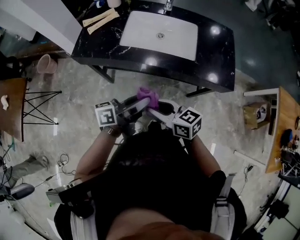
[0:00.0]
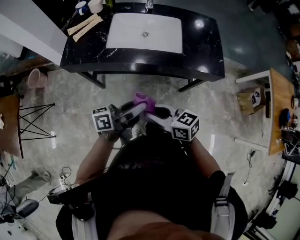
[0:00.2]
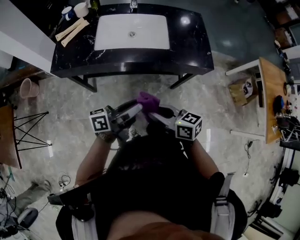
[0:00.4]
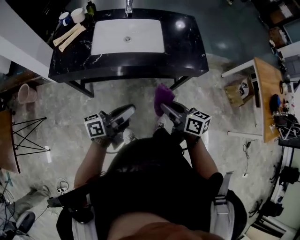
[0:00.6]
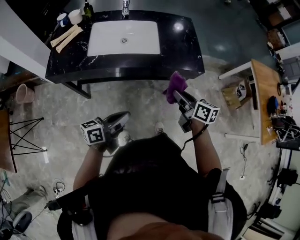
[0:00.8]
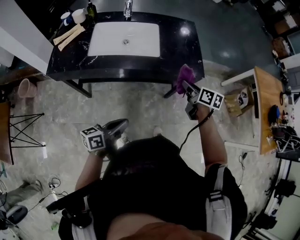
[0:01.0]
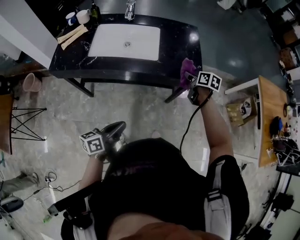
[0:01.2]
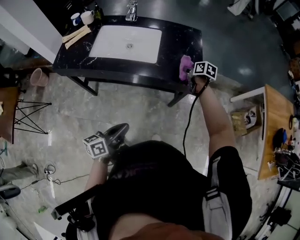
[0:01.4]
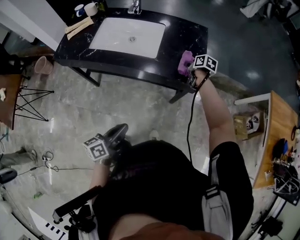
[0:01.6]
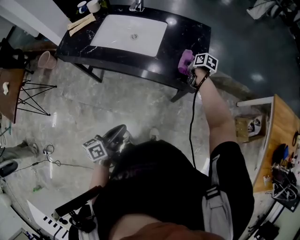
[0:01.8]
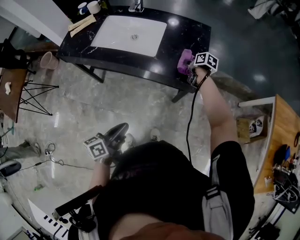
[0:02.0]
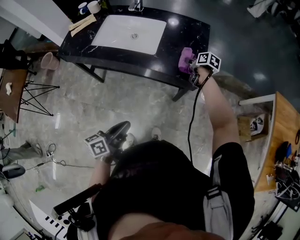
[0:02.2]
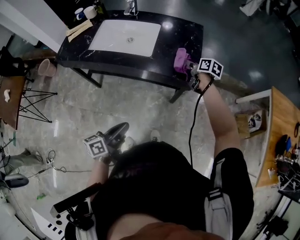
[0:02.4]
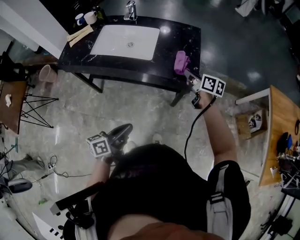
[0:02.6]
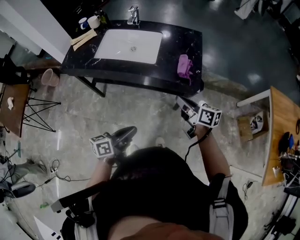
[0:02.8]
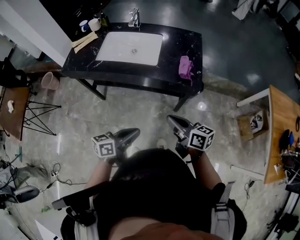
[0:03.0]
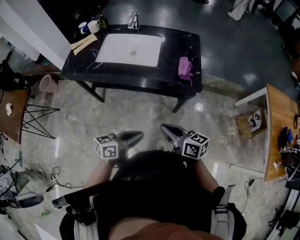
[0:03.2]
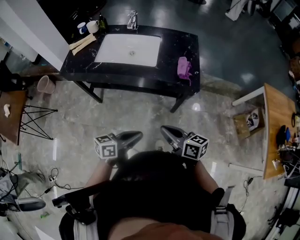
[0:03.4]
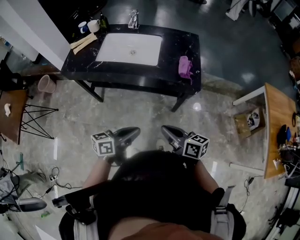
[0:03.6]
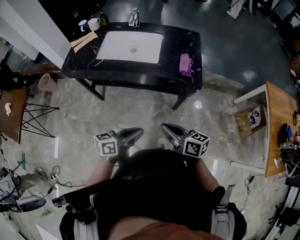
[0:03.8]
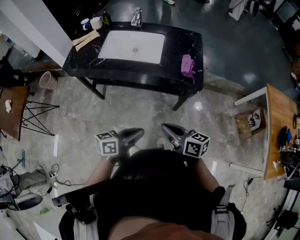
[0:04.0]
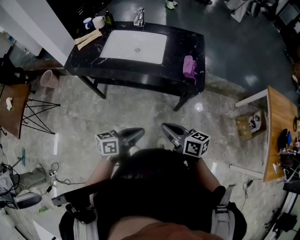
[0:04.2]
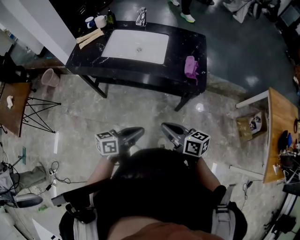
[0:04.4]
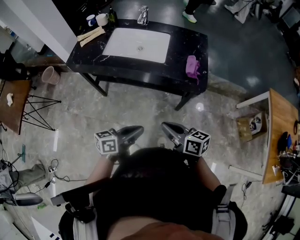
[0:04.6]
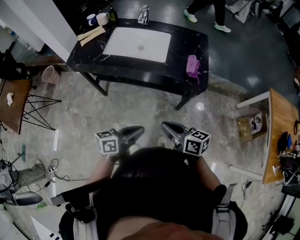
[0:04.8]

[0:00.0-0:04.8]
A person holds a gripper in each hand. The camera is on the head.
0:00.0 to 0:01.6: The left gripper heads to the right, backward and downward, covering some 20 cm, changes its angle by some 30 degrees, and closes its fingers. Meanwhile the right gripper moves to the right and forward, about 50 cm, and tilts its fingers some 30 degrees downward.
0:01.6 to 0:03.2: The right gripper moves backward, to the left and upward, roughly 40 cm, and points its fingers roughly 40 degrees further upward; the left gripper shifts by about 5 cm, and turns by roughly 30 degrees.
0:03.2 to 0:04.8: There are only small adjustments of the grippers.

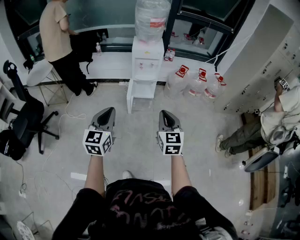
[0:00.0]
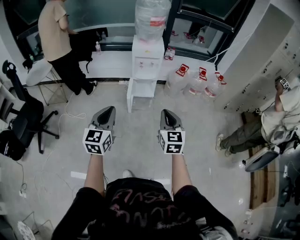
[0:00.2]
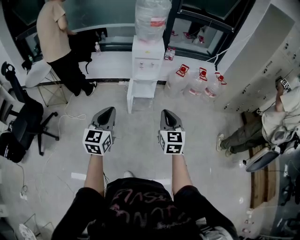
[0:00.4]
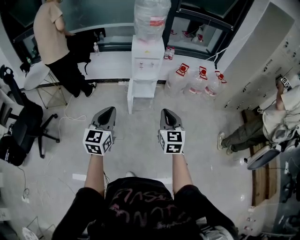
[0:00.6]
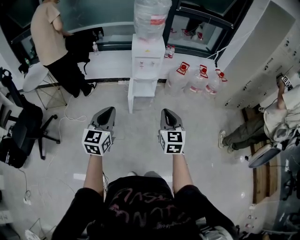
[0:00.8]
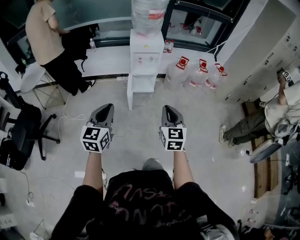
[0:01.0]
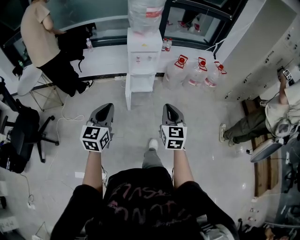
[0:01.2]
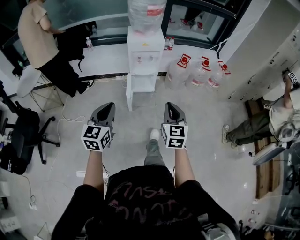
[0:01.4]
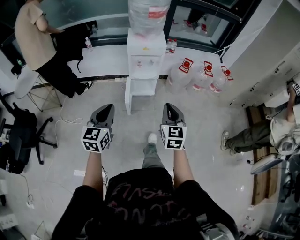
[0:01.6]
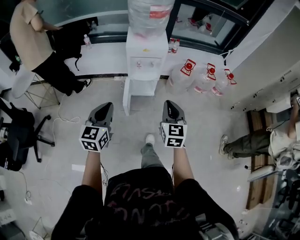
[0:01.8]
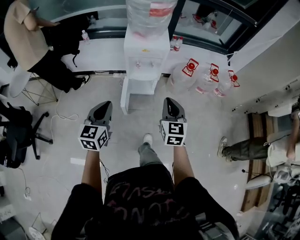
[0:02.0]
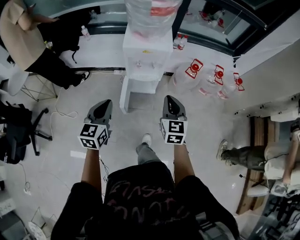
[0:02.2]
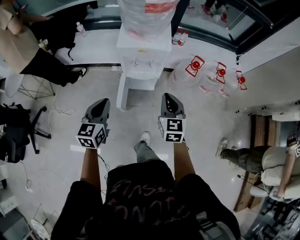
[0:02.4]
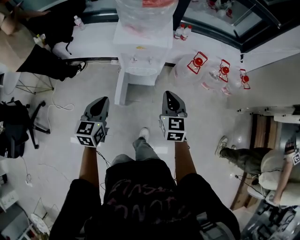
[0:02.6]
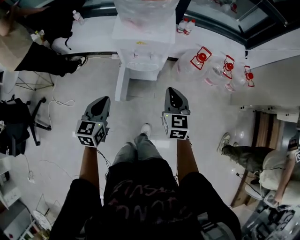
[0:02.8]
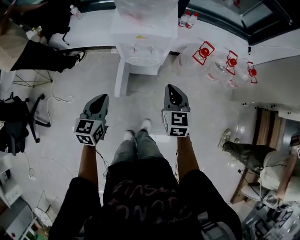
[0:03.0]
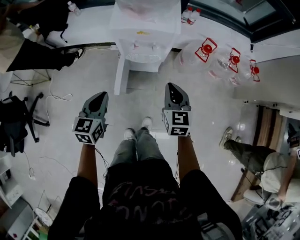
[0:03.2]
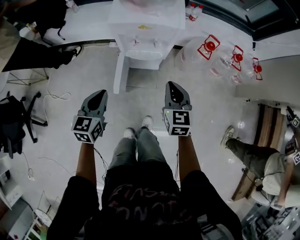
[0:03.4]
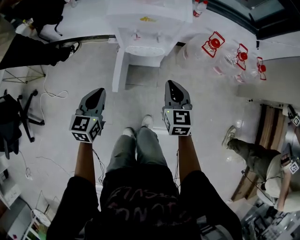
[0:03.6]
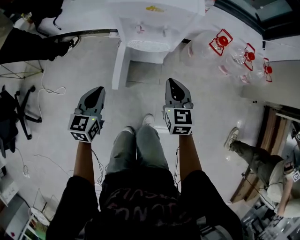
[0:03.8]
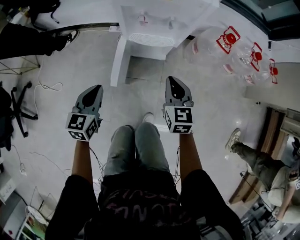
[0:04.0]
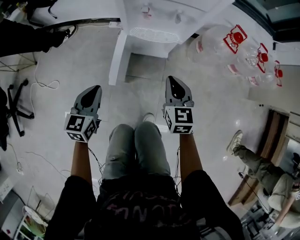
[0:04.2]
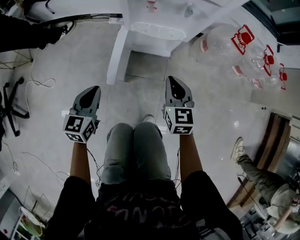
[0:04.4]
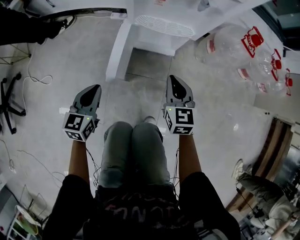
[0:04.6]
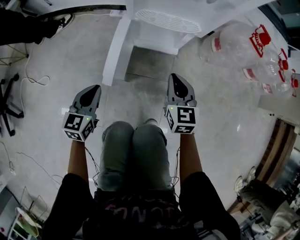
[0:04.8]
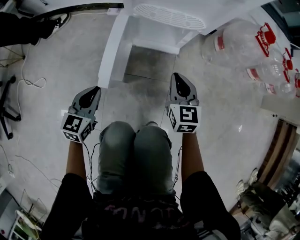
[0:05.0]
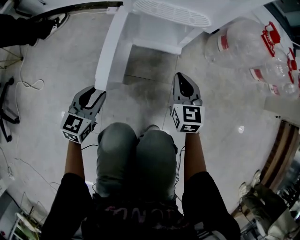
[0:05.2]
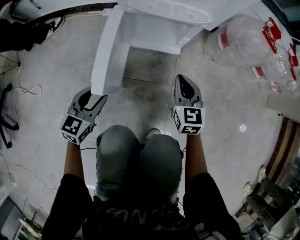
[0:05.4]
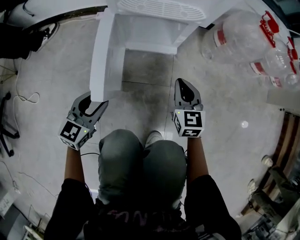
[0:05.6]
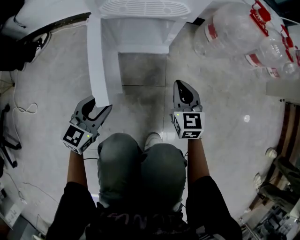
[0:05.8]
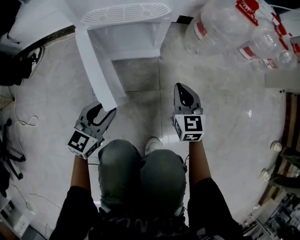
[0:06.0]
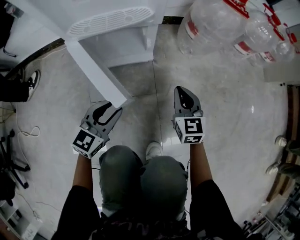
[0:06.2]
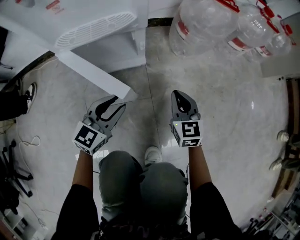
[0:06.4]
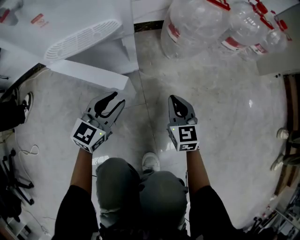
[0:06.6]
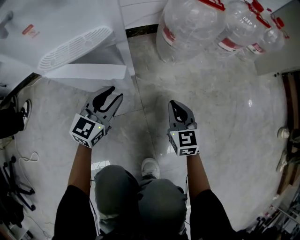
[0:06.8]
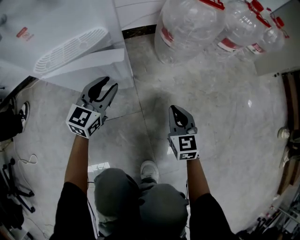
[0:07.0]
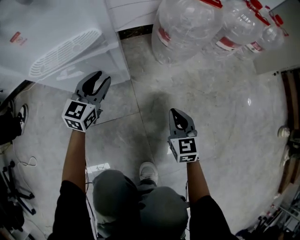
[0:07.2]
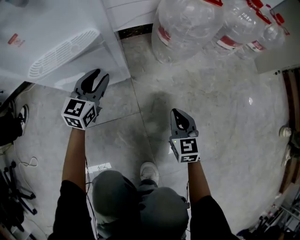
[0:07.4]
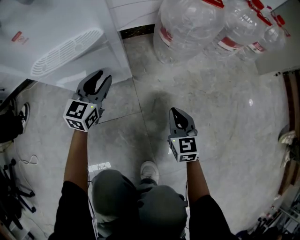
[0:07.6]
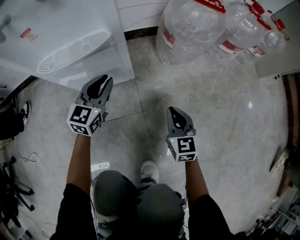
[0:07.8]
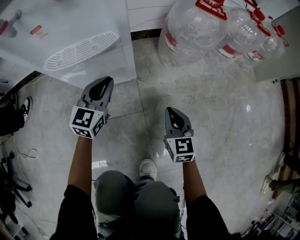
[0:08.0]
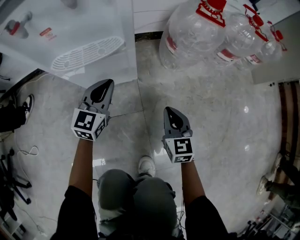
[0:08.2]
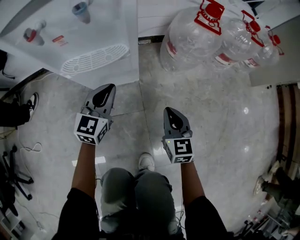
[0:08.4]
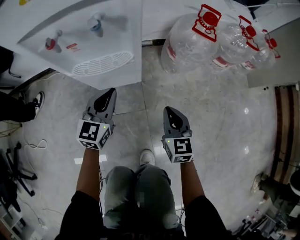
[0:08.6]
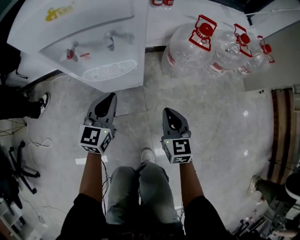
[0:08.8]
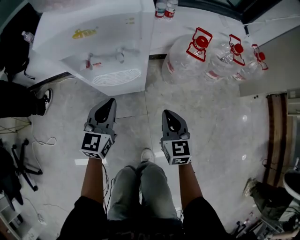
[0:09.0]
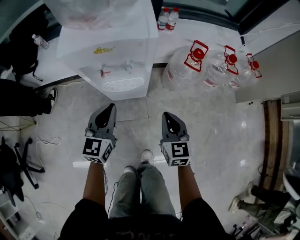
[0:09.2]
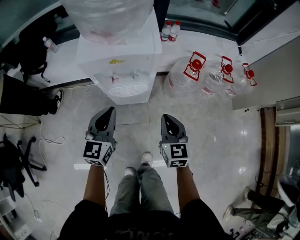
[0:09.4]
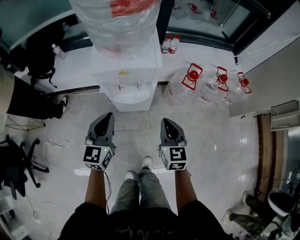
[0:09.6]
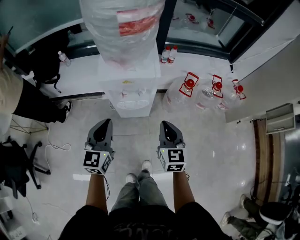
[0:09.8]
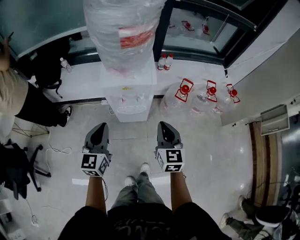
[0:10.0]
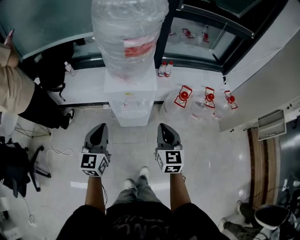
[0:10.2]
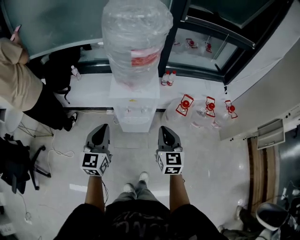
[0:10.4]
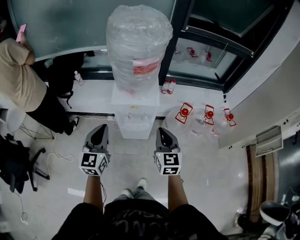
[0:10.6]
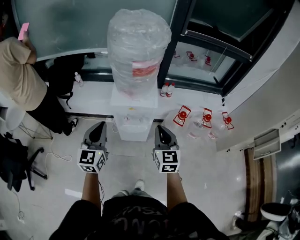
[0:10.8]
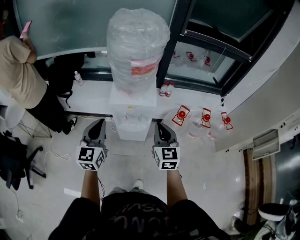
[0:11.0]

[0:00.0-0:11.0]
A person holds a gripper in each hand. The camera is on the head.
0:00.0 to 0:01.6: The two grippers go approximately 20 cm forward.
0:01.6 to 0:03.2: Both grippers move forward and downward, roughly 35 cm.
0:03.2 to 0:04.8: The grippers both shift downward by some 40 cm.
0:04.8 to 0:06.2: The right gripper moves to the right and downward, about 20 cm. Meanwhile the left gripper moves to the right, downward and forward, roughly 20 cm, changes its angle by some 30 degrees, and opens up.
0:06.2 to 0:07.8: The left gripper heads forward, covering roughly 20 cm. The right gripper shifts about 5 cm to the right.
0:07.8 to 0:09.4: The grippers both shift upward by roughly 50 cm.
0:09.4 to 0:11.0: The grippers both shift upward by approximately 30 cm.

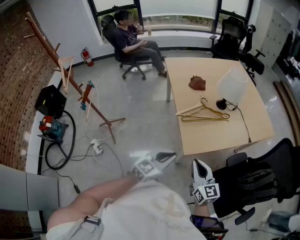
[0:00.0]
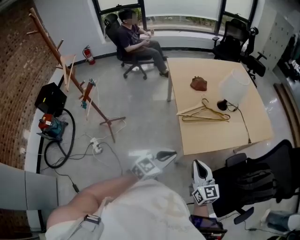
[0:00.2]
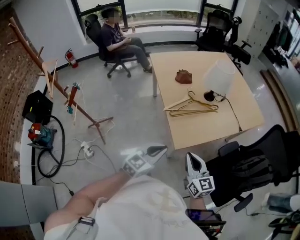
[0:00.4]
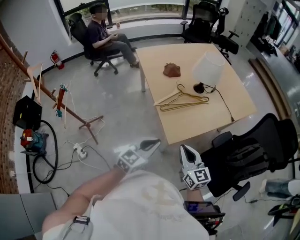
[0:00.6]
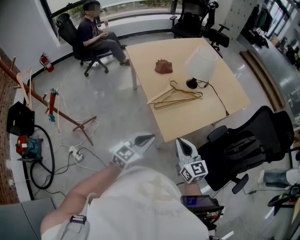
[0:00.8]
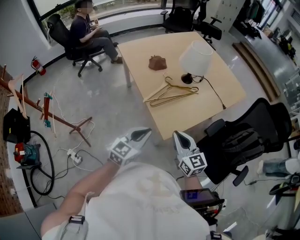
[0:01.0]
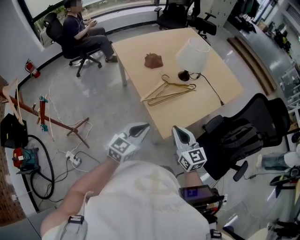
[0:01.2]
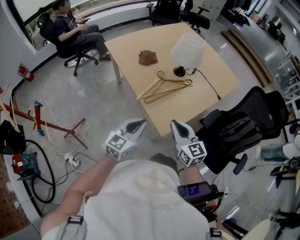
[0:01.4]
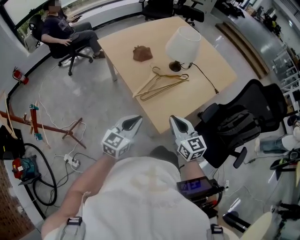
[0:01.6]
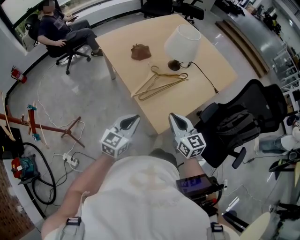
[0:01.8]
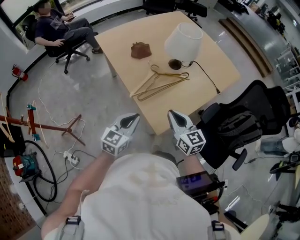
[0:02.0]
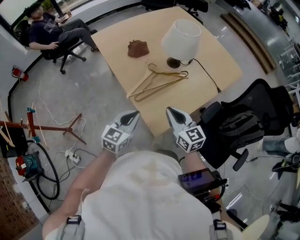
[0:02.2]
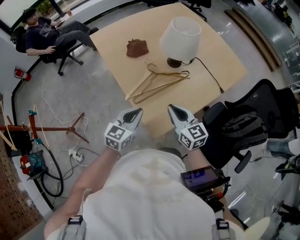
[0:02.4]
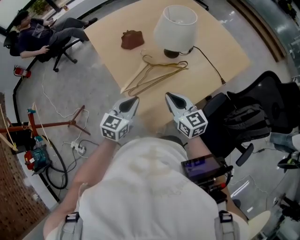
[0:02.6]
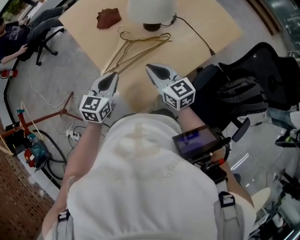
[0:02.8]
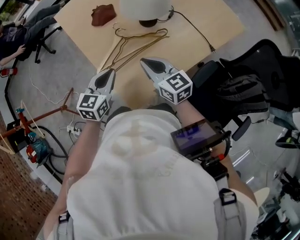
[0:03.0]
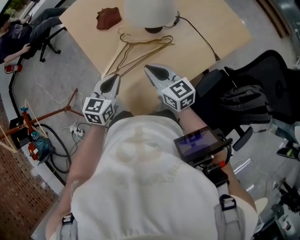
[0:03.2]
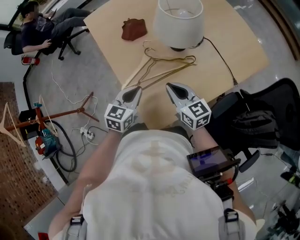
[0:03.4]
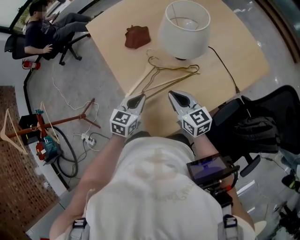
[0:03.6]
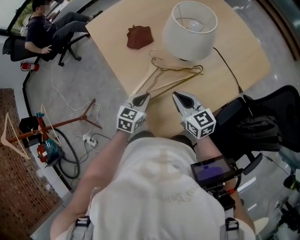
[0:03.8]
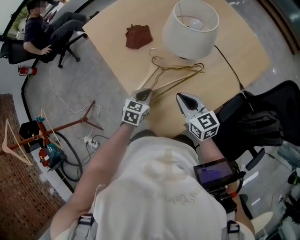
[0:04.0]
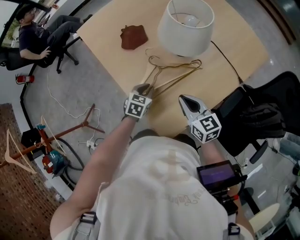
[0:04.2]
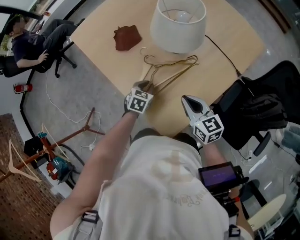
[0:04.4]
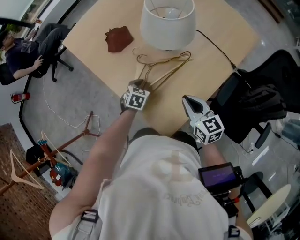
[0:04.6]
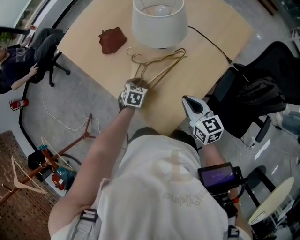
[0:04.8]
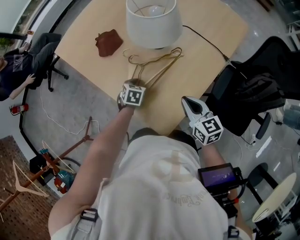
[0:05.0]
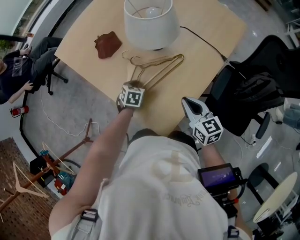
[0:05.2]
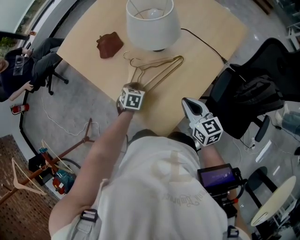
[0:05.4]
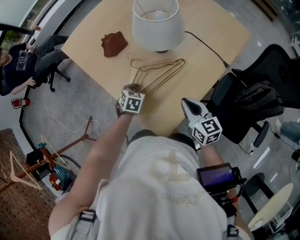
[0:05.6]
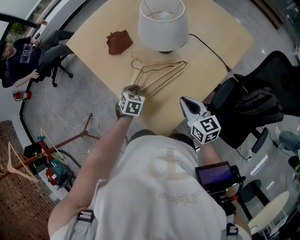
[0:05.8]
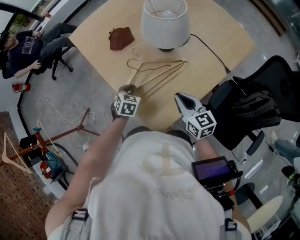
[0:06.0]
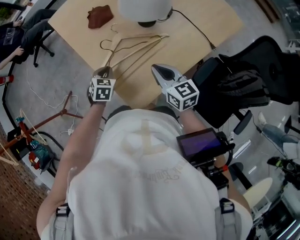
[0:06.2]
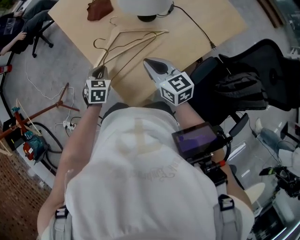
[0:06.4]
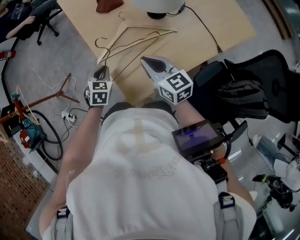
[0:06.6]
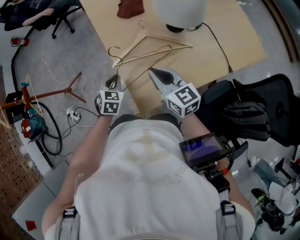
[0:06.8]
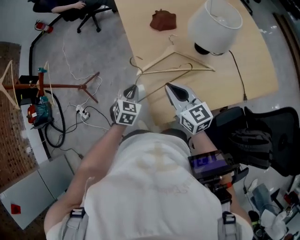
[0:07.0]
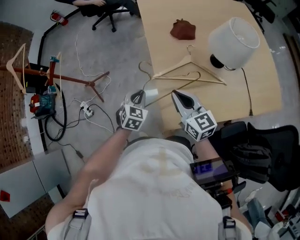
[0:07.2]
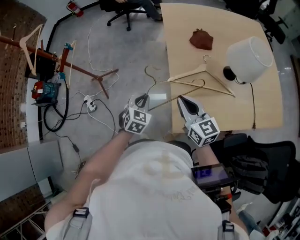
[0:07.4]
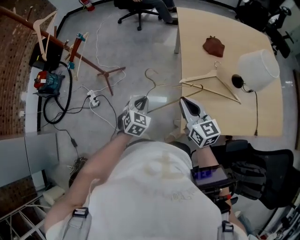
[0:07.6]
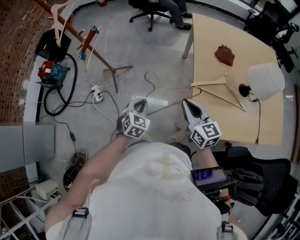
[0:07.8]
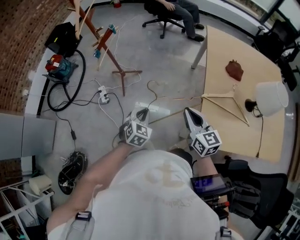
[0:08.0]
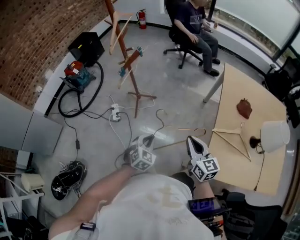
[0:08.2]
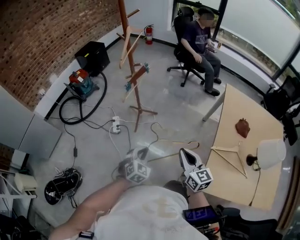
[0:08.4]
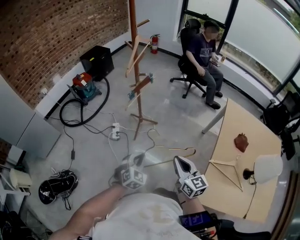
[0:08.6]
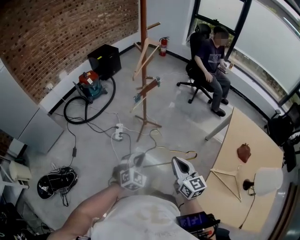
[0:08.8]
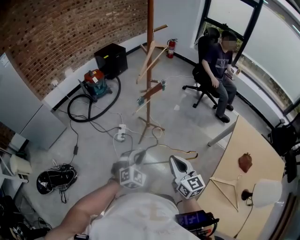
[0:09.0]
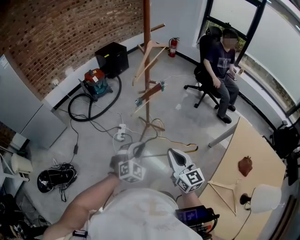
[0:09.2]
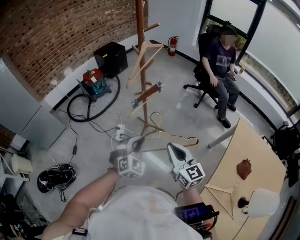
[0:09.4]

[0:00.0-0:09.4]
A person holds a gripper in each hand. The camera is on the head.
0:00.0 to 0:01.6: The left gripper heads forward and to the left, covering some 15 cm. Meanwhile the right gripper travels forward by approximately 10 cm.
0:01.6 to 0:03.2: The left gripper heads forward and to the right, covering roughly 20 cm, and swivels approximately 20 degrees. Meanwhile the right gripper goes approximately 20 cm forward.
0:03.2 to 0:04.8: The left gripper travels downward and forward by roughly 20 cm, and points its fingers approximately 30 degrees further downward. Meanwhile the right gripper shifts by about 10 cm, and swivels approximately 30 degrees.
0:04.8 to 0:06.2: The left gripper travels upward, to the left and backward by some 10 cm.
0:06.2 to 0:07.8: The left gripper shifts by some 35 cm, and changes its angle by roughly 30 degrees. The right gripper ends up roughly 30 cm from where it was, and turns by some 40 degrees.
0:07.8 to 0:09.4: The right gripper ends up some 30 cm from where it was, and changes its angle by approximately 40 degrees, while the left gripper moves some 30 cm, and swivels about 30 degrees.
